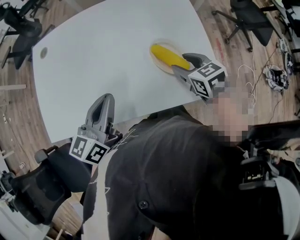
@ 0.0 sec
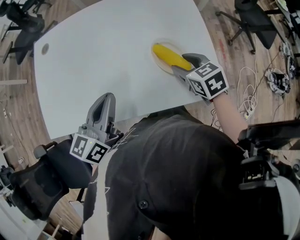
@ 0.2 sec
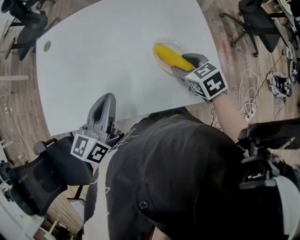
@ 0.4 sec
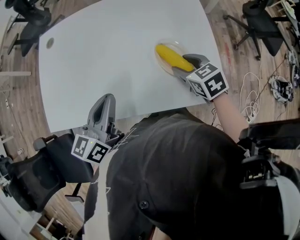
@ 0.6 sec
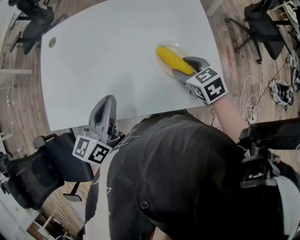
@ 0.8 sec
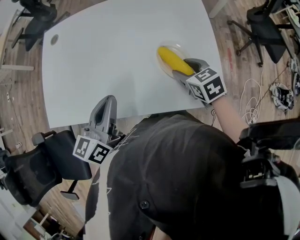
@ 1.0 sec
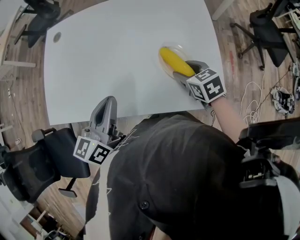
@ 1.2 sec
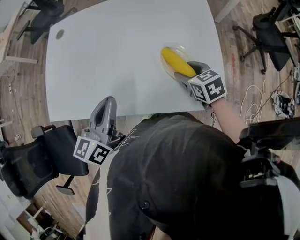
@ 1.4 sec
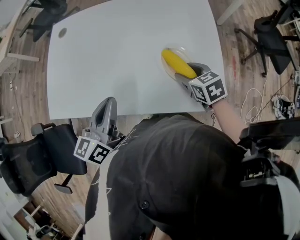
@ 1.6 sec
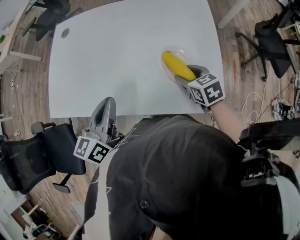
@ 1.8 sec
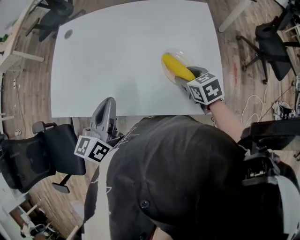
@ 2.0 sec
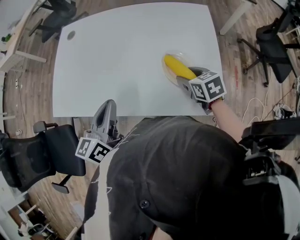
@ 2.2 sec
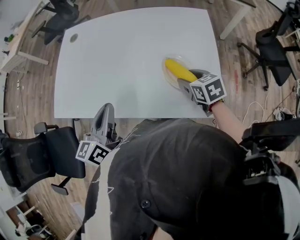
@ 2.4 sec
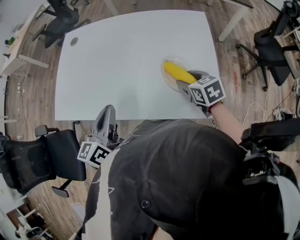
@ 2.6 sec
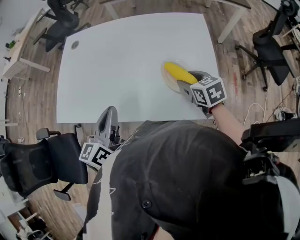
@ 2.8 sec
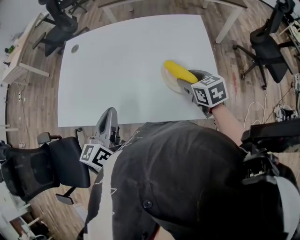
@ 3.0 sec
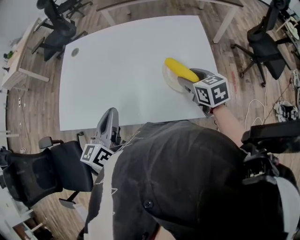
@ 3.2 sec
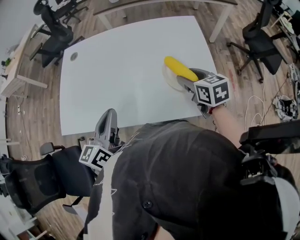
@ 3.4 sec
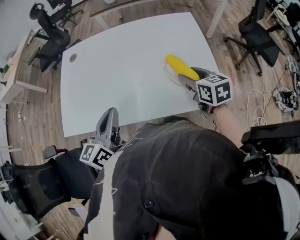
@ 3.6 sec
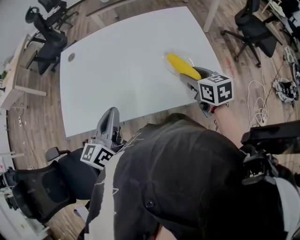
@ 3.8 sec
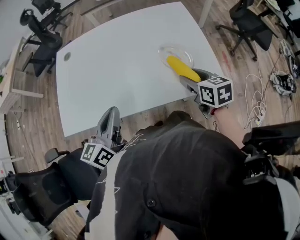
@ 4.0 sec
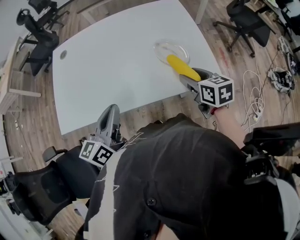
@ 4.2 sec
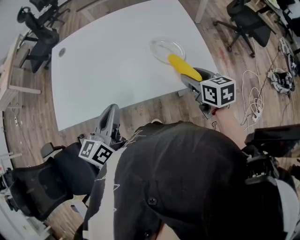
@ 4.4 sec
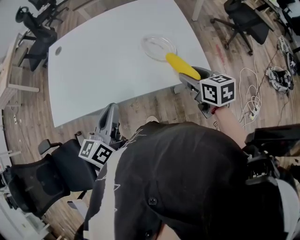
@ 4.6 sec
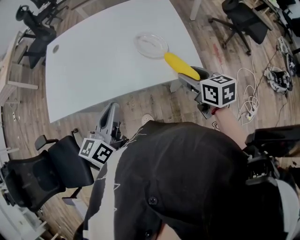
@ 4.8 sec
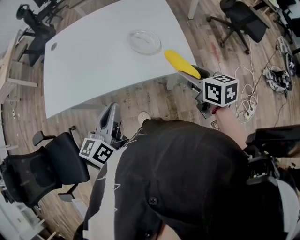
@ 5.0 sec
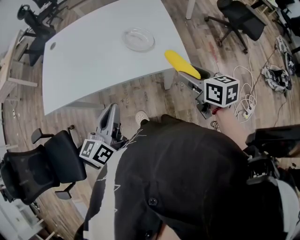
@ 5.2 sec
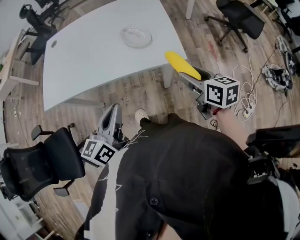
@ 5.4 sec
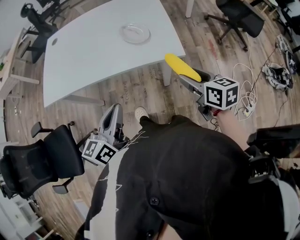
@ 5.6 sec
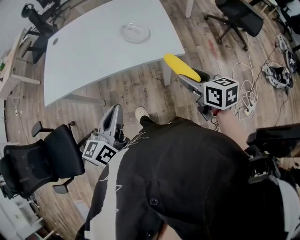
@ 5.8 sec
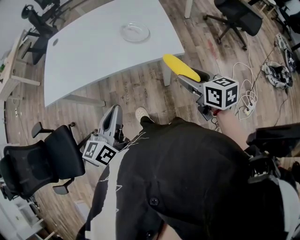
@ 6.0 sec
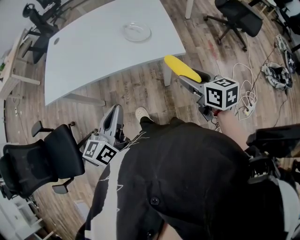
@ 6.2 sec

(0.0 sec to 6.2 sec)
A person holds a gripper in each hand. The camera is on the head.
0.0 sec - 1.6 sec: The grippers move only a little.
1.6 sec - 3.2 sec: The right gripper heads upward, covering approximately 5 cm.
3.2 sec - 4.6 sec: The left gripper shifts some 10 cm backward. Meanwhile the right gripper heads backward, covering approximately 15 cm.
4.6 sec - 6.2 sec: Both grippers travel together backward and to the right, some 20 cm.

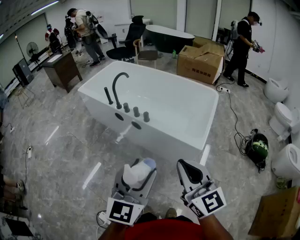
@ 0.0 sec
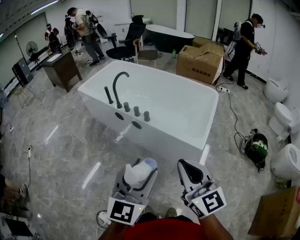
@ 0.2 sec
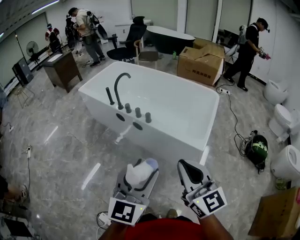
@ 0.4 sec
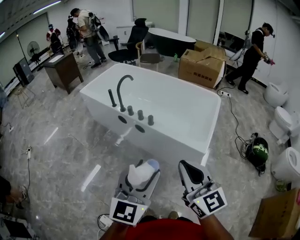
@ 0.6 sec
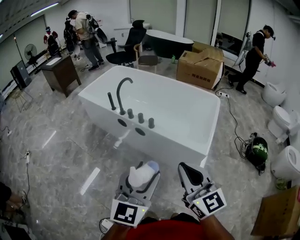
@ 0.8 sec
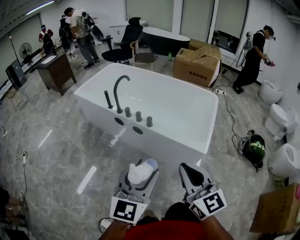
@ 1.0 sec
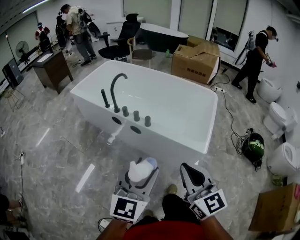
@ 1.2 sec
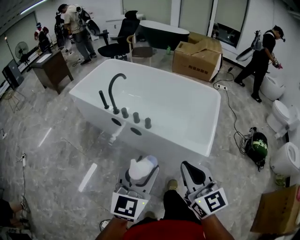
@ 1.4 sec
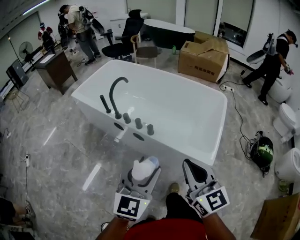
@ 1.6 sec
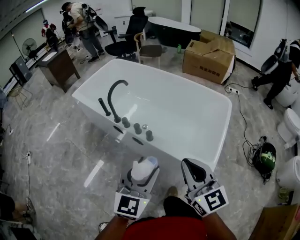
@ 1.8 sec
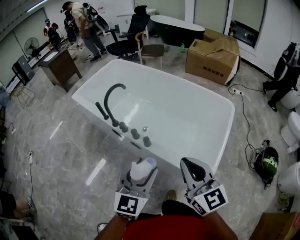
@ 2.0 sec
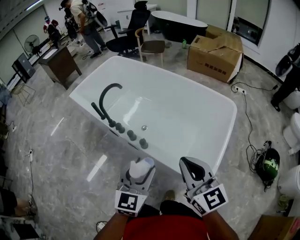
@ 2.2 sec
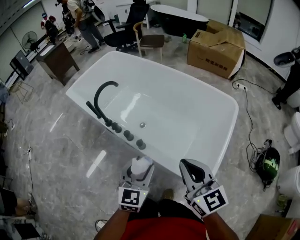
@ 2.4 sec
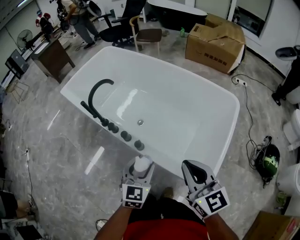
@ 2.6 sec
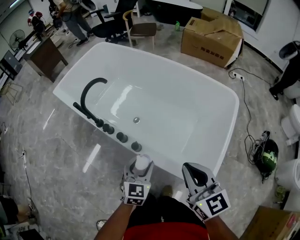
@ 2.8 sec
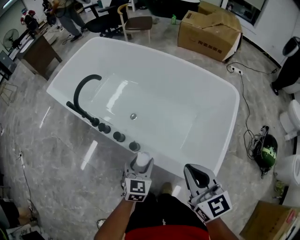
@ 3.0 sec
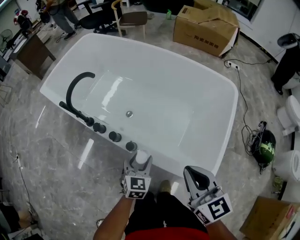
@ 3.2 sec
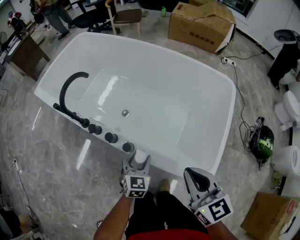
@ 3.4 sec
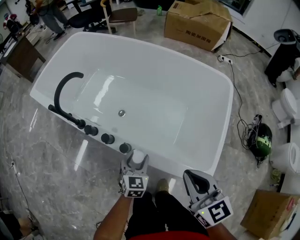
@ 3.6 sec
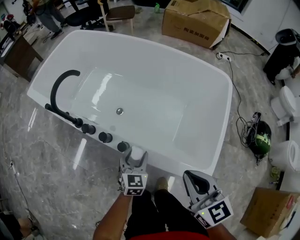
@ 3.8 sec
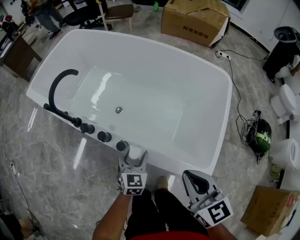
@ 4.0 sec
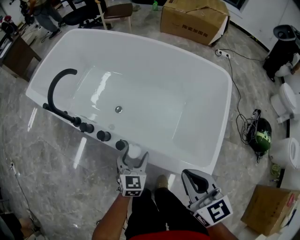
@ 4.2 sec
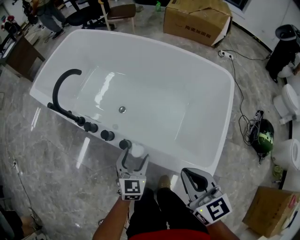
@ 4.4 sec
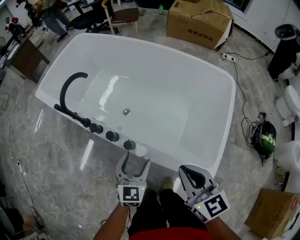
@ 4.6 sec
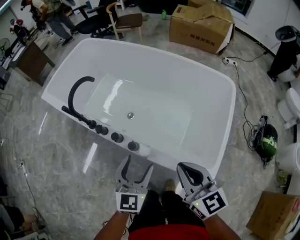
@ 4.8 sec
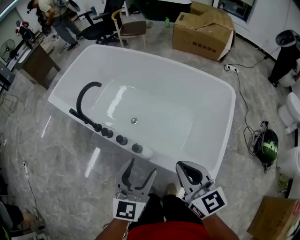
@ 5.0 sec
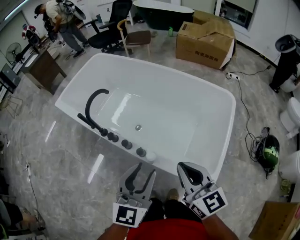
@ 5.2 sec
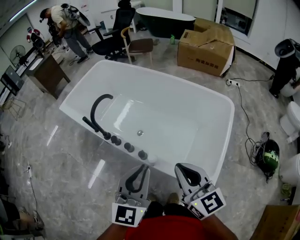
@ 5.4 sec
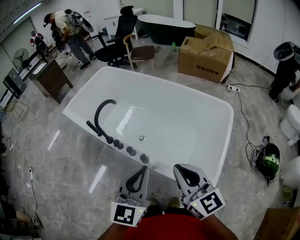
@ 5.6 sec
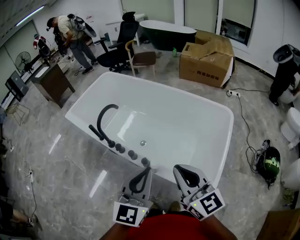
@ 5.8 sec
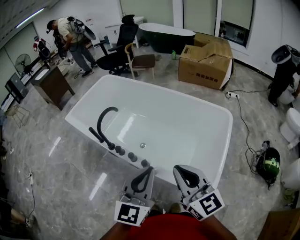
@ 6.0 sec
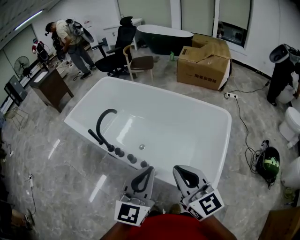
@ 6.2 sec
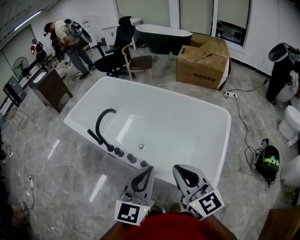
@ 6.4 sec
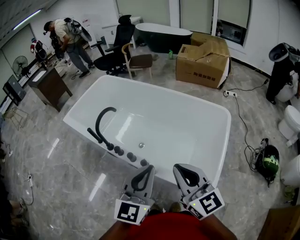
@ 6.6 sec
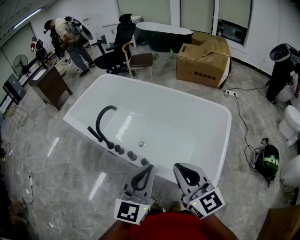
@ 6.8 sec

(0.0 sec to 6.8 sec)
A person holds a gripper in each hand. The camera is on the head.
0.0 sec - 1.4 sec: Both grippers move forward, some 10 cm.
1.4 sec - 2.8 sec: The left gripper moves forward and downward, some 40 cm, and turns by roughly 20 degrees. Meanwhile the right gripper travels forward by roughly 30 cm.
2.8 sec - 4.0 sec: The left gripper moves downward and forward, some 15 cm. The right gripper heads downward, covering some 5 cm.
4.0 sec - 5.4 sec: The left gripper shifts roughly 35 cm upward, turns by approximately 20 degrees, and closes its fingers, while the right gripper shifts about 15 cm upward.
5.4 sec - 6.8 sec: The grippers make only small movements.

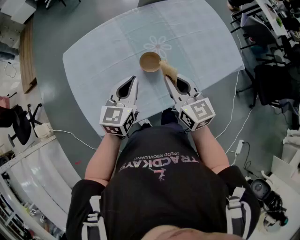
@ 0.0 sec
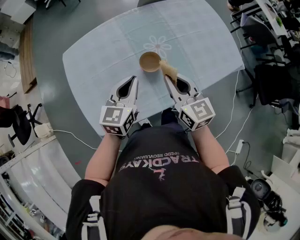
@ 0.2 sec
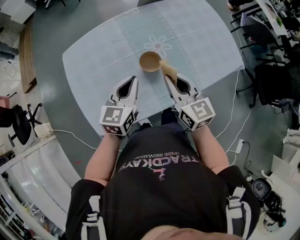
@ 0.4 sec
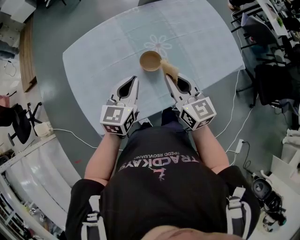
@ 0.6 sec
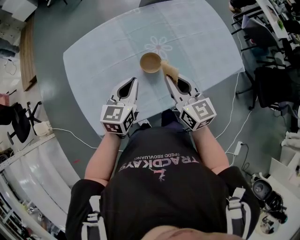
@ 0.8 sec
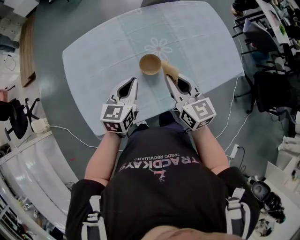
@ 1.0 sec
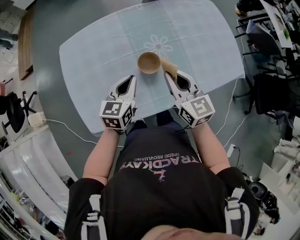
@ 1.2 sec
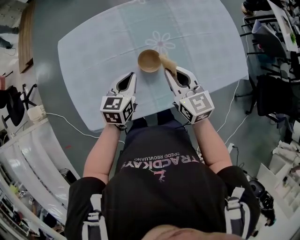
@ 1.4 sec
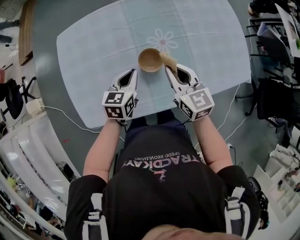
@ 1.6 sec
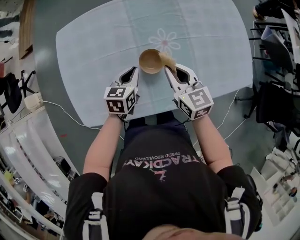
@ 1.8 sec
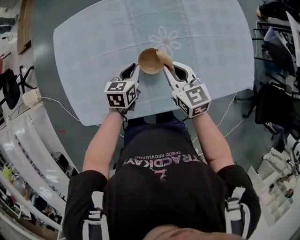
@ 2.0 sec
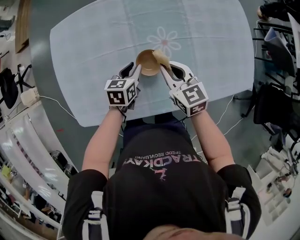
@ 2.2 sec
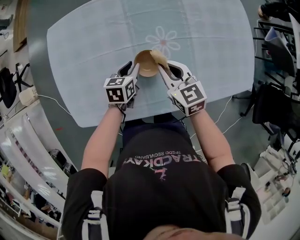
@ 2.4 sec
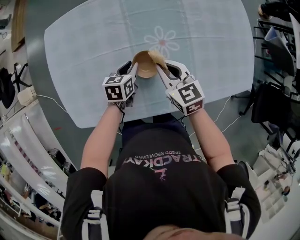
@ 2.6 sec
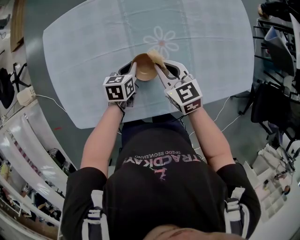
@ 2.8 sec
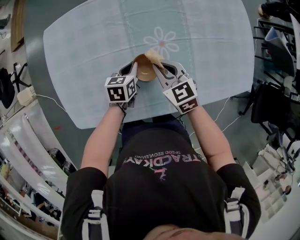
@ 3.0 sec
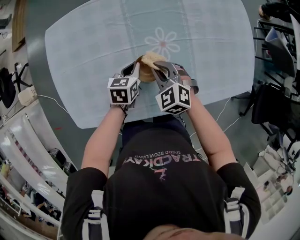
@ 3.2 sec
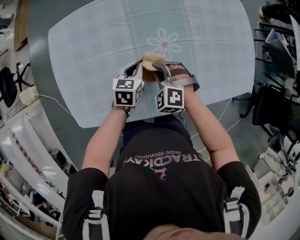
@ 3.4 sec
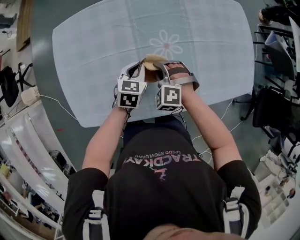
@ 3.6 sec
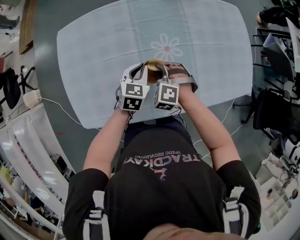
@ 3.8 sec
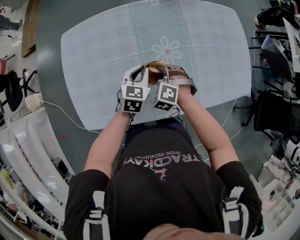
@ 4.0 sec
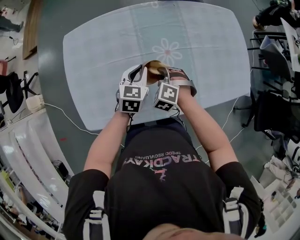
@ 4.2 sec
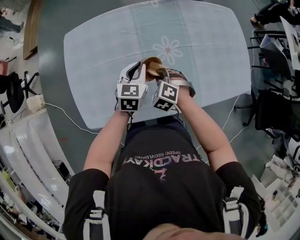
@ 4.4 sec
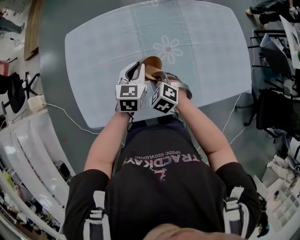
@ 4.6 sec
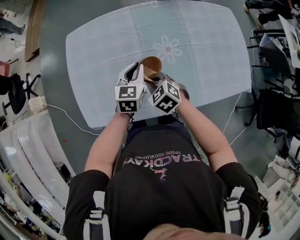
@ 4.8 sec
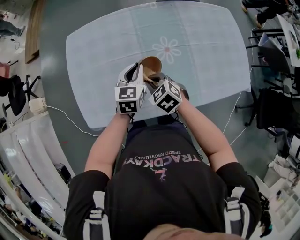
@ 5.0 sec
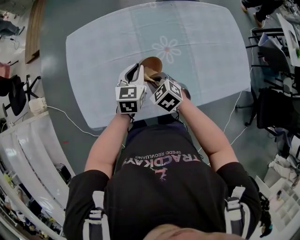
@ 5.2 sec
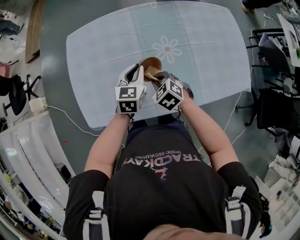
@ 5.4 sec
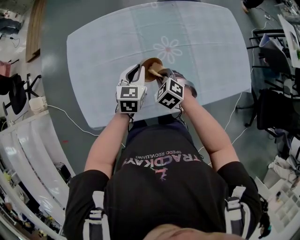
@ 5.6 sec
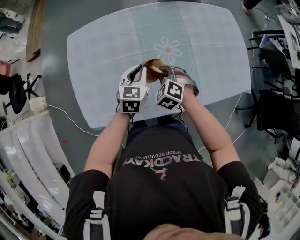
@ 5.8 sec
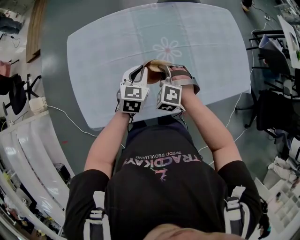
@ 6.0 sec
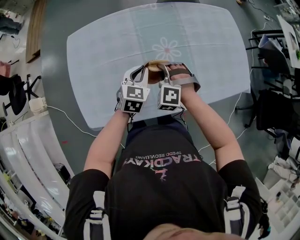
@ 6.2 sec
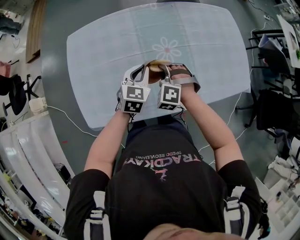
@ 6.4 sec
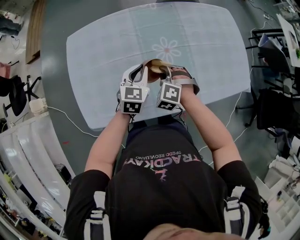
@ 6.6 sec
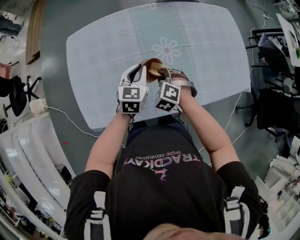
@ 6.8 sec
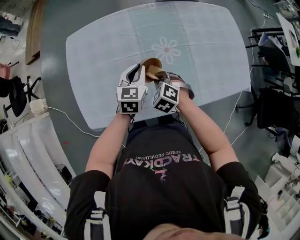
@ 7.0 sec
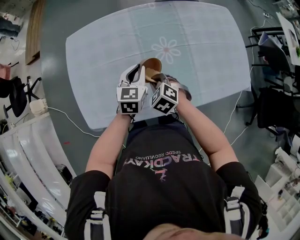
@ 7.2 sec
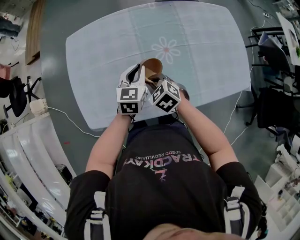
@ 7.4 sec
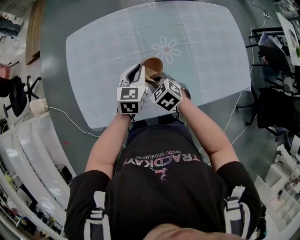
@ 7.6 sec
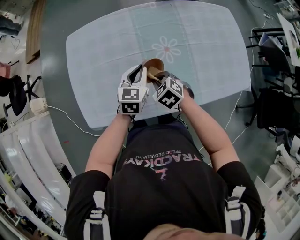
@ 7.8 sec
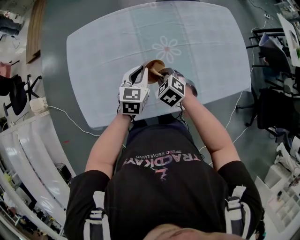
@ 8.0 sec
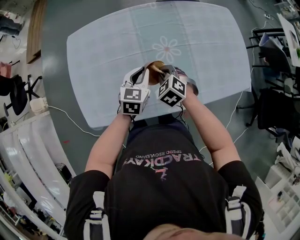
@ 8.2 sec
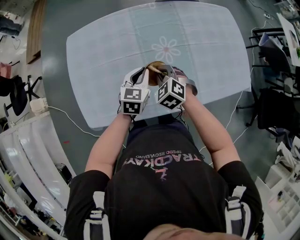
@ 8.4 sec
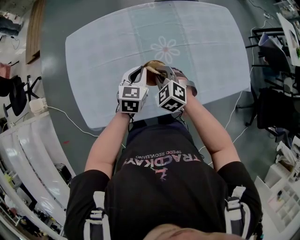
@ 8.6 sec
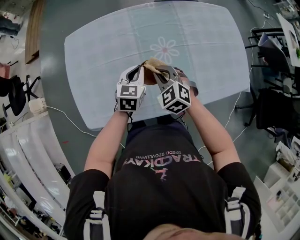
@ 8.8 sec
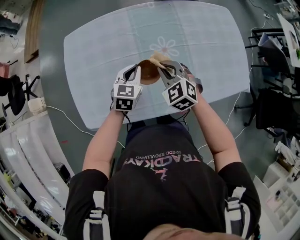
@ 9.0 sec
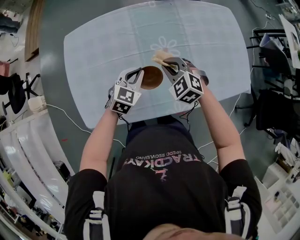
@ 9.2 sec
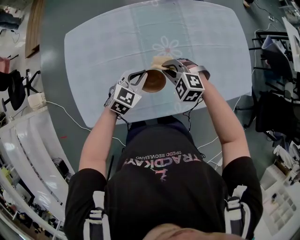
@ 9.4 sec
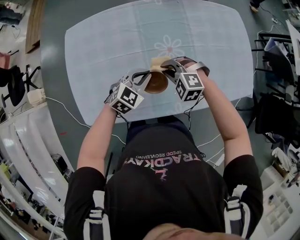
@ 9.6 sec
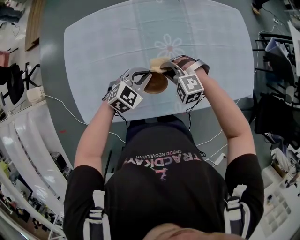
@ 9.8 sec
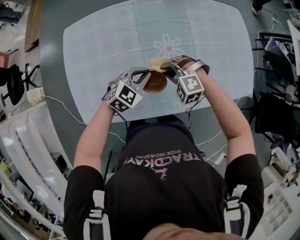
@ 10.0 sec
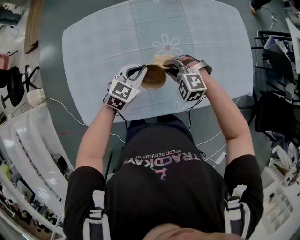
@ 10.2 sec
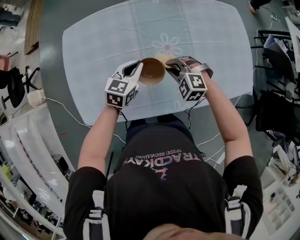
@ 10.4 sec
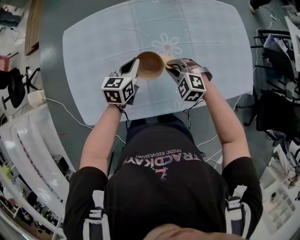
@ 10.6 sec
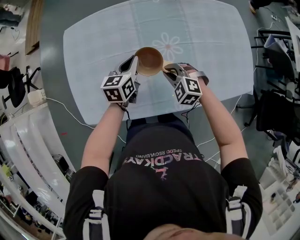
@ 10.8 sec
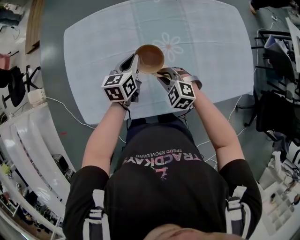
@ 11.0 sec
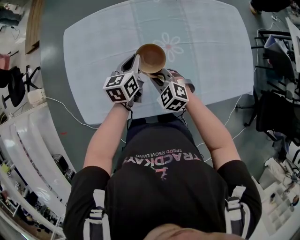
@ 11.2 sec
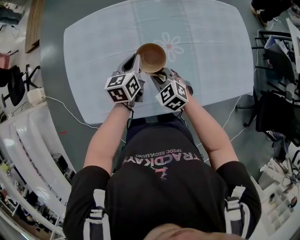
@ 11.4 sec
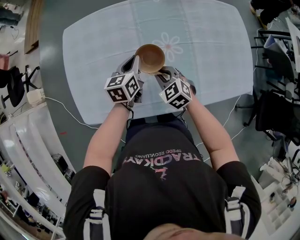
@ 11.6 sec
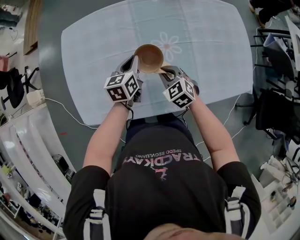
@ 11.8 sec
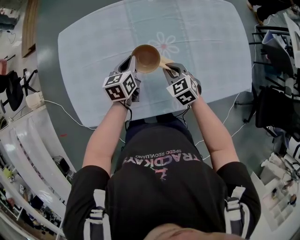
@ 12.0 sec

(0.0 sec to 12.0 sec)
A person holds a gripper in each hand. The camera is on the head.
0.0 sec - 1.6 sec: The left gripper is displaced downward and forward by about 15 cm, and rotates about 20 degrees; the right gripper heads forward and downward, covering approximately 10 cm.
1.6 sec - 3.0 sec: Both grippers travel together downward and forward, approximately 10 cm. The right gripper turns by about 20 degrees; the left gripper opens, then closes again.
3.0 sec - 4.4 sec: The left gripper is displaced upward by about 10 cm, and changes its angle by some 30 degrees; the right gripper travels backward by about 5 cm, and swivels roughly 50 degrees.
6.0 sec - 7.6 sec: The right gripper travels backward by some 5 cm, and swivels roughly 40 degrees.
7.6 sec - 9.0 sec: The right gripper moves upward, forward and to the right, about 10 cm, and changes its angle by about 20 degrees.
9.0 sec - 10.4 sec: The right gripper travels downward by about 5 cm, and turns by roughly 30 degrees.
10.4 sec - 12.0 sec: The right gripper travels to the left and back again, approximately 5 cm each way, and twists approximately 40 degrees clockwise, seen from behind, while the left gripper swivels some 30 degrees.
